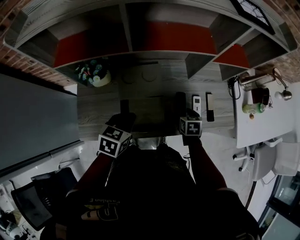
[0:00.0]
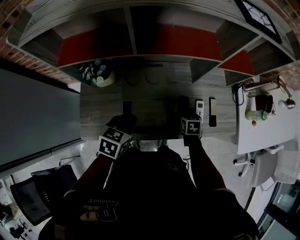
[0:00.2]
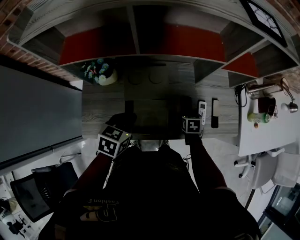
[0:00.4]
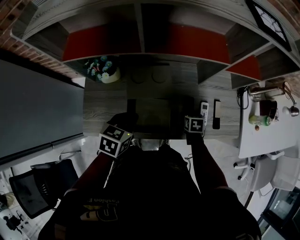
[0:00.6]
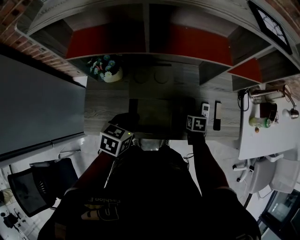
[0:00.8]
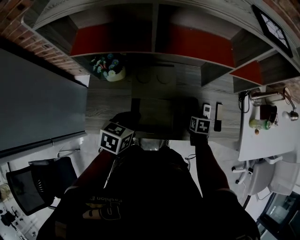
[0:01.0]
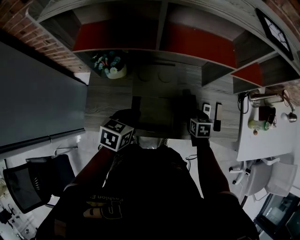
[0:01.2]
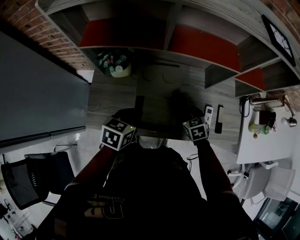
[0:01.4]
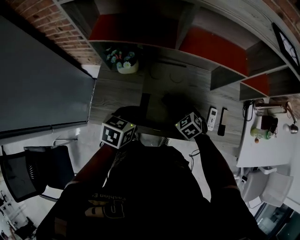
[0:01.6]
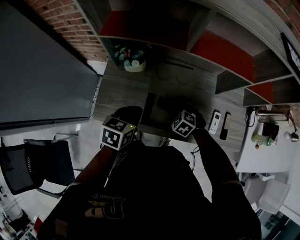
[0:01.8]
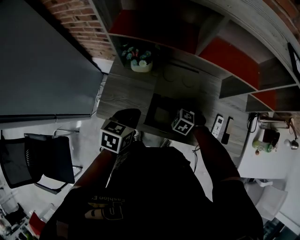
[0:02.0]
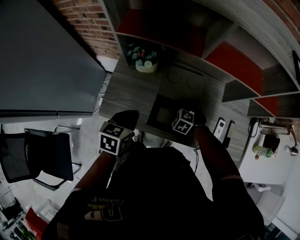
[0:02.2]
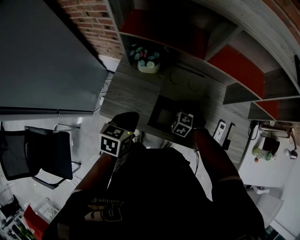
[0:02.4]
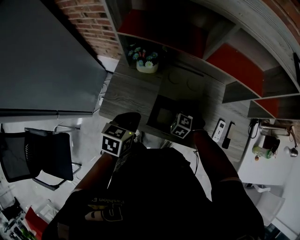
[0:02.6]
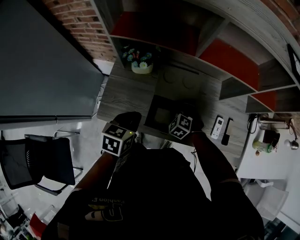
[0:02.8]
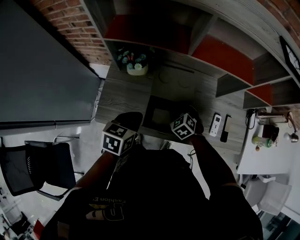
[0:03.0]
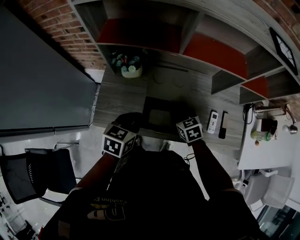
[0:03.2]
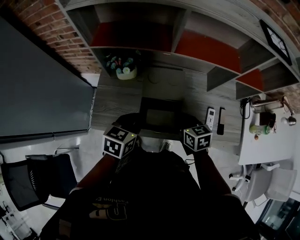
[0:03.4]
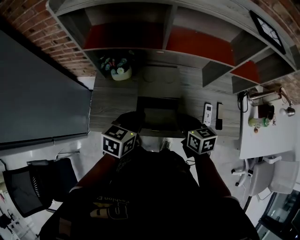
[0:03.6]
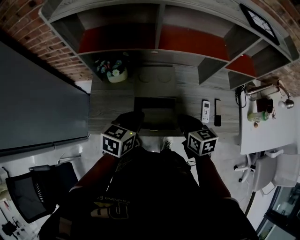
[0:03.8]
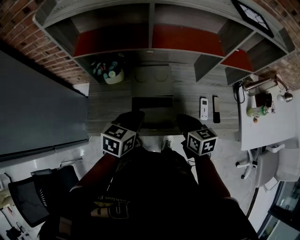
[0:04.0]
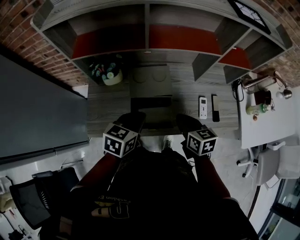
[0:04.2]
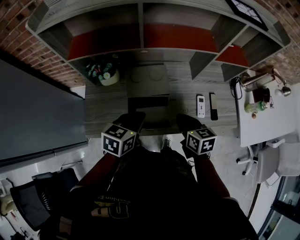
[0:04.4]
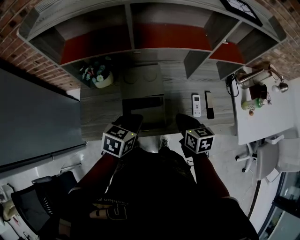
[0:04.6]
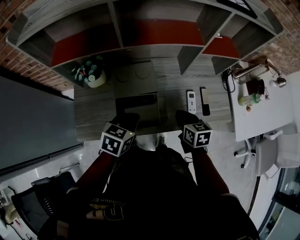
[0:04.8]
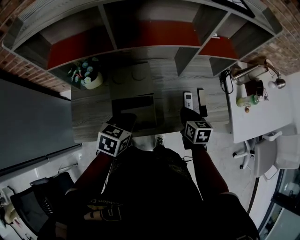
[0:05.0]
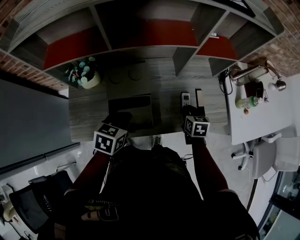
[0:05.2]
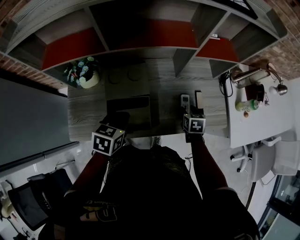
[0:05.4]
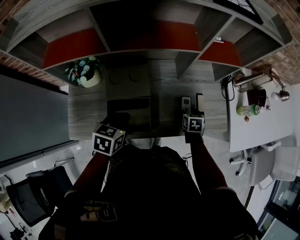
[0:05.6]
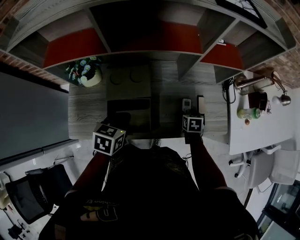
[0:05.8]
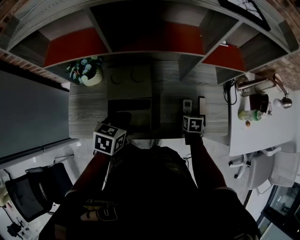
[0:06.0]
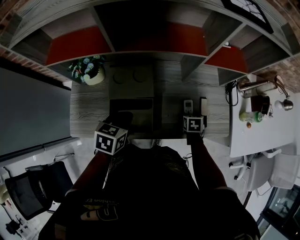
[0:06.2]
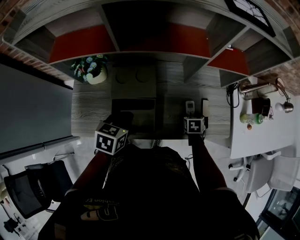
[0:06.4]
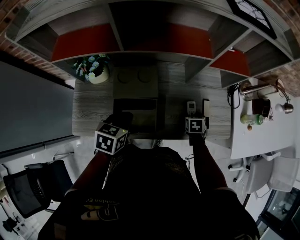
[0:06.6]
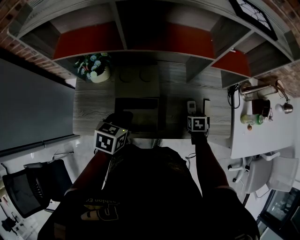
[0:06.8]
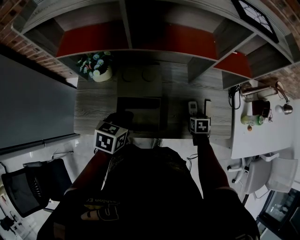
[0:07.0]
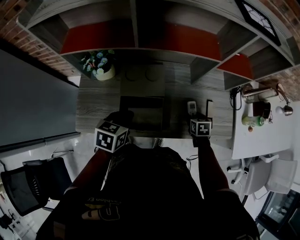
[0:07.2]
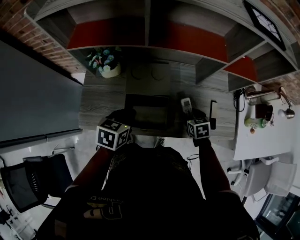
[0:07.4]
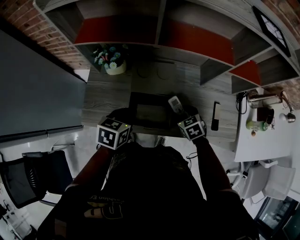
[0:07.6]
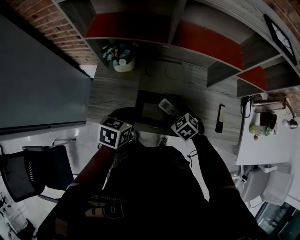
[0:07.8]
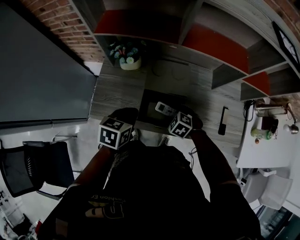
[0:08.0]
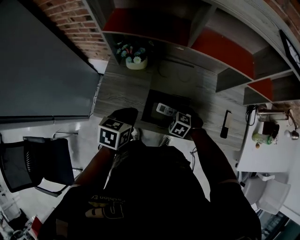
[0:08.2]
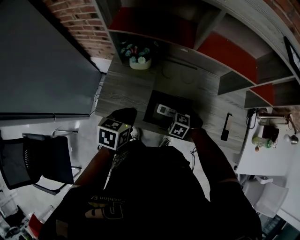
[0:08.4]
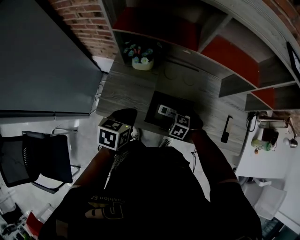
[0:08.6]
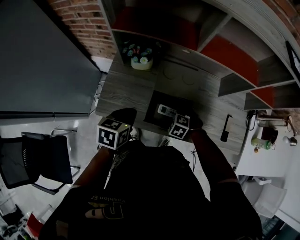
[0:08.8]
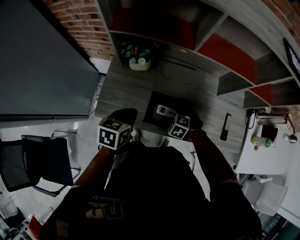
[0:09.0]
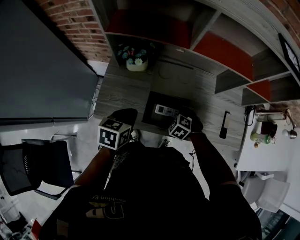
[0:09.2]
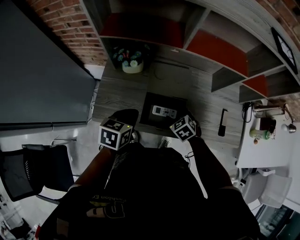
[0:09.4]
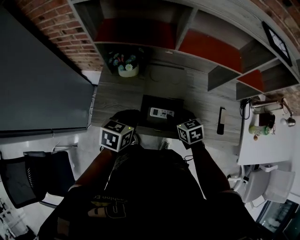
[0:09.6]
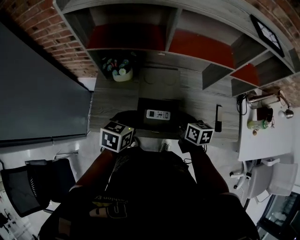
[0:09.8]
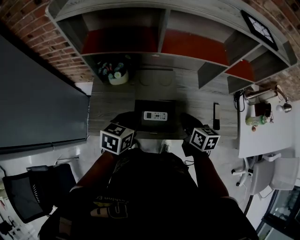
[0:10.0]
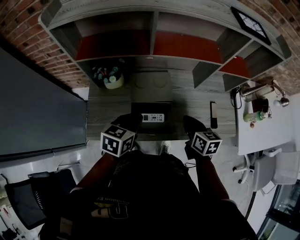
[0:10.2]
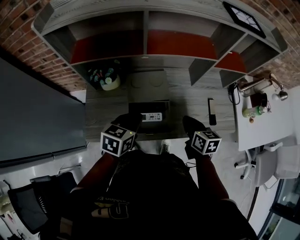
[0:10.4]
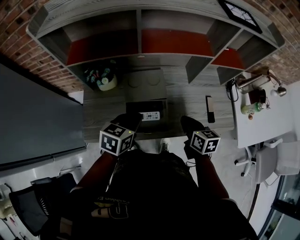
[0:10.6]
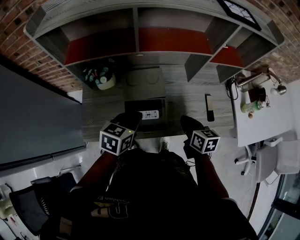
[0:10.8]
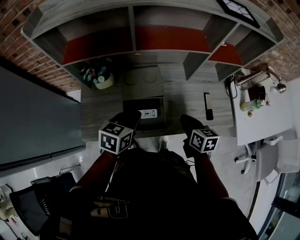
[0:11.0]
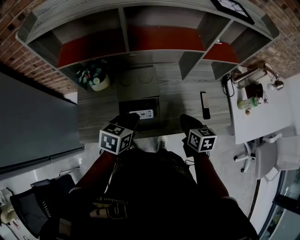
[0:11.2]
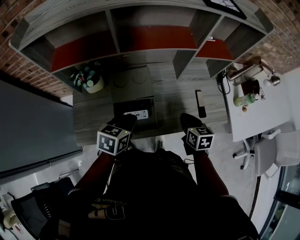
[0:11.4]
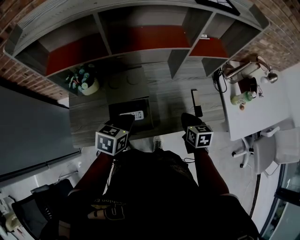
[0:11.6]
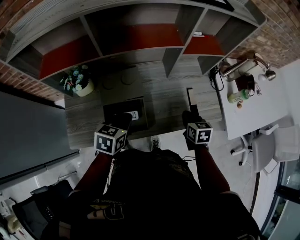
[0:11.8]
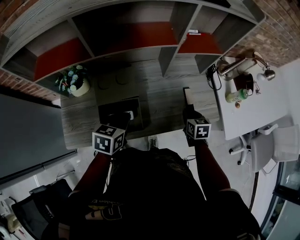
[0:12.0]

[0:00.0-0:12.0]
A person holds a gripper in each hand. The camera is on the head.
0:00.0 to 0:01.6: The right gripper moves to the left, approximately 15 cm, and rolls counterclockwise, seen from behind, by about 50 degrees. The left gripper shifts some 5 cm to the left.
0:03.0 to 0:04.4: The left gripper travels to the right by some 10 cm. Meanwhile the right gripper moves upward, to the right and backward, approximately 20 cm, twists some 60 degrees clockwise, seen from behind, and closes up.
0:04.4 to 0:06.0: The right gripper heads downward, to the right and forward, covering about 25 cm, turns by some 30 degrees, and opens its fingers; the left gripper travels downward by approximately 5 cm.
0:06.0 to 0:07.6: The left gripper heads to the left, covering some 10 cm. Meanwhile the right gripper shifts some 20 cm to the left and upward, and turns by approximately 40 degrees.
0:07.6 to 0:09.0: The left gripper moves to the left, about 10 cm; the right gripper heads to the left and downward, covering roughly 15 cm, and rolls counterclockwise, seen from behind, by some 50 degrees.
0:09.0 to 0:10.4: The right gripper heads upward and to the right, covering about 20 cm, rotates around the line of its fingers by roughly 80 degrees, clockwise from behind, and closes its fingers, while the left gripper goes some 15 cm to the right and upward, and rotates roughly 20 degrees.
0:10.4 to 0:12.0: The left gripper travels to the right by some 10 cm. Meanwhile the right gripper goes roughly 20 cm to the right and downward.

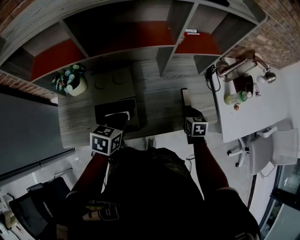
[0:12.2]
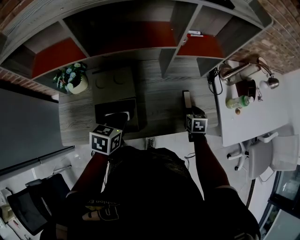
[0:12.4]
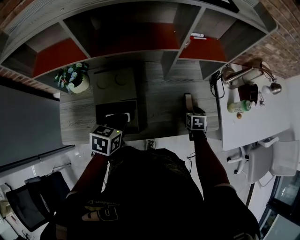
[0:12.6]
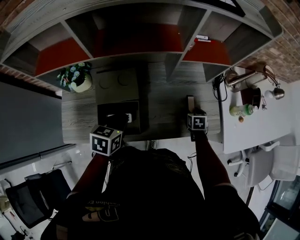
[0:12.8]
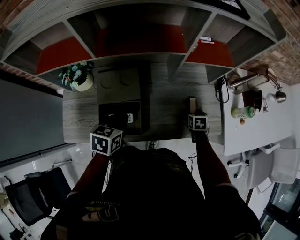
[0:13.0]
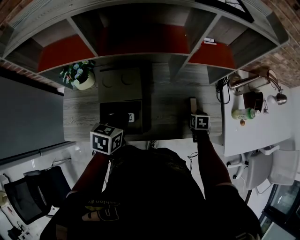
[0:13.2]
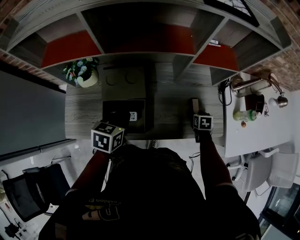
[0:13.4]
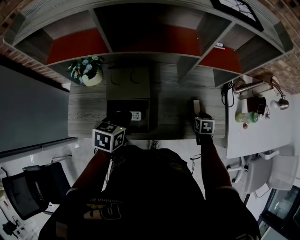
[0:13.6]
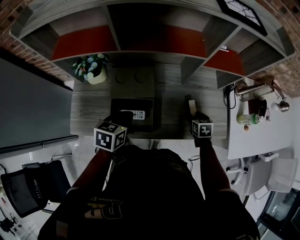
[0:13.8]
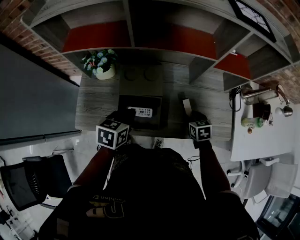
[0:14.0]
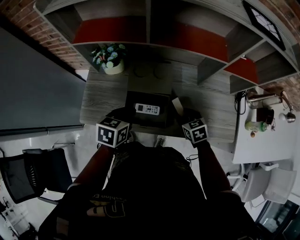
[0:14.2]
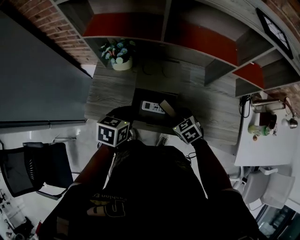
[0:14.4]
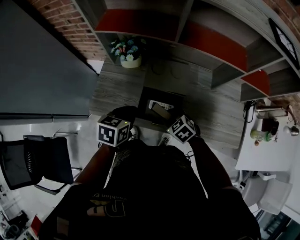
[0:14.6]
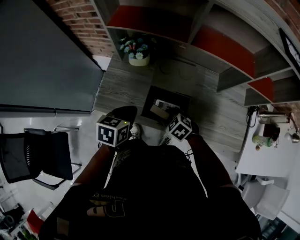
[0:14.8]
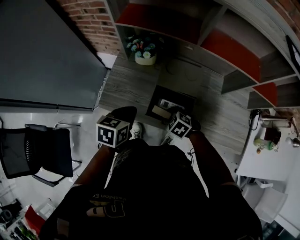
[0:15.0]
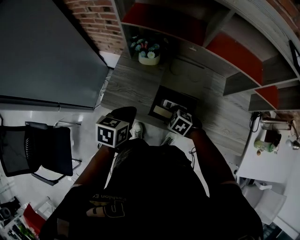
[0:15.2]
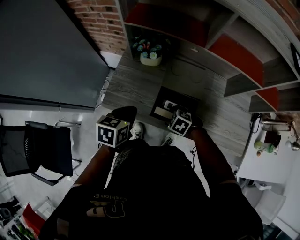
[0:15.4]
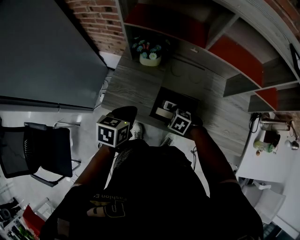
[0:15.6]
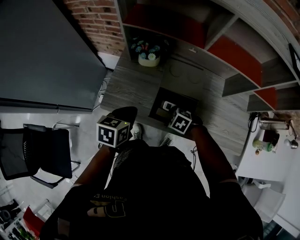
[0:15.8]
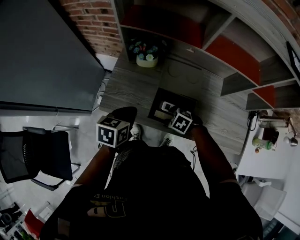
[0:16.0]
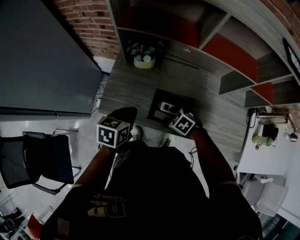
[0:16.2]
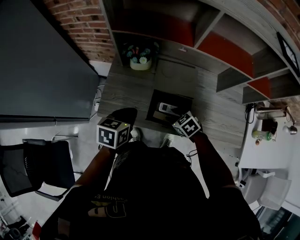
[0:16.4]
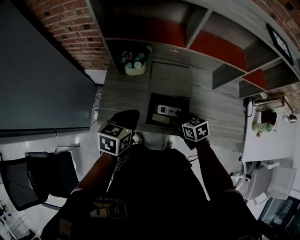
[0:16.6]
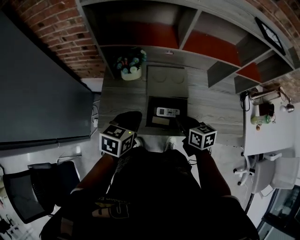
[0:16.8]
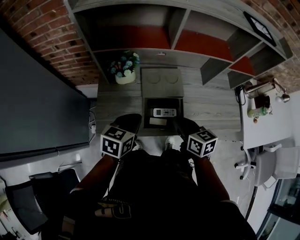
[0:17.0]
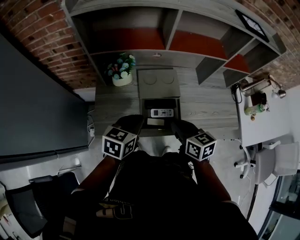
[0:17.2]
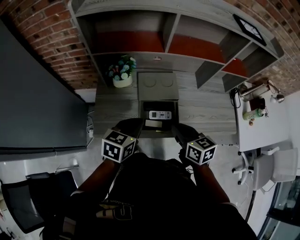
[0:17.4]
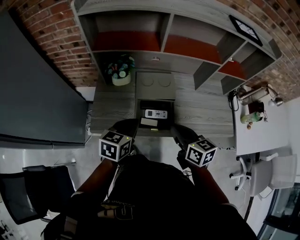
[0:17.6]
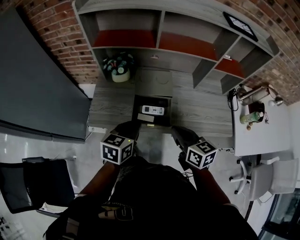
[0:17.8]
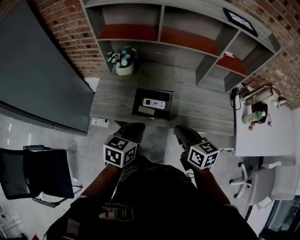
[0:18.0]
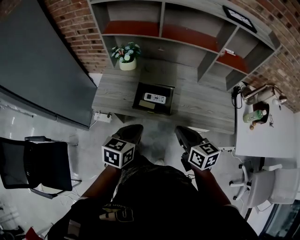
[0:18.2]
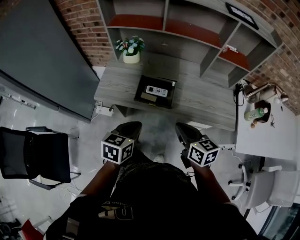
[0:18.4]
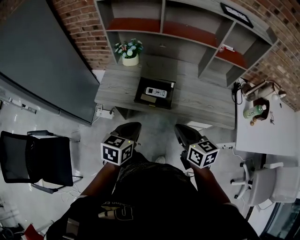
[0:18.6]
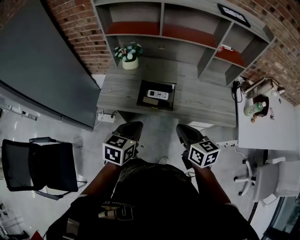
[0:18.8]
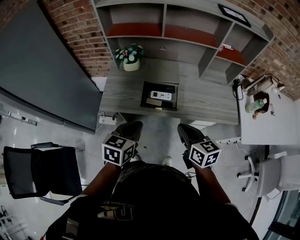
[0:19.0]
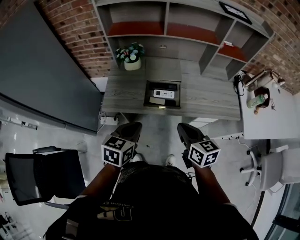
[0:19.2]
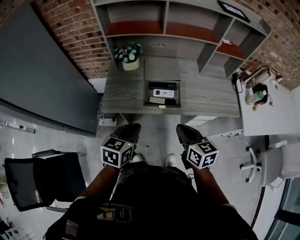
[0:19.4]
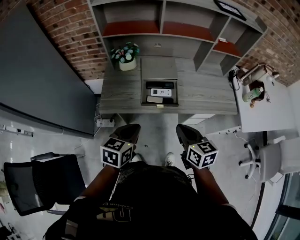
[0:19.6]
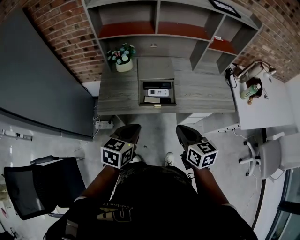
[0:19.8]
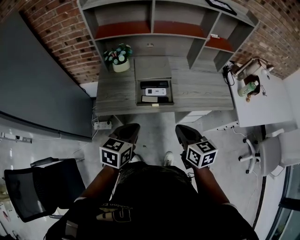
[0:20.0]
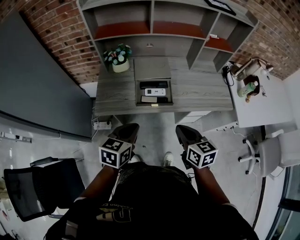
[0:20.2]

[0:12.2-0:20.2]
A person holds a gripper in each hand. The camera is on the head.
0:12.2 to 0:13.8: The right gripper opens its fingers. The left gripper goes approximately 5 cm to the left.
0:13.8 to 0:15.4: The right gripper changes place by about 35 cm, and twists approximately 70 degrees counterclockwise, seen from behind. Meanwhile the left gripper ends up roughly 20 cm from where it was.
0:15.4 to 0:17.0: The left gripper moves roughly 5 cm, and swivels some 30 degrees. The right gripper is displaced upward by some 20 cm, angles its fingers upward, by approximately 50 degrees, and closes its fingers.
0:17.0 to 0:18.6: The grippers both shift backward and to the right by some 20 cm.
0:18.6 to 0:20.2: The right gripper changes place by some 5 cm, while the left gripper heads to the left, covering about 5 cm.

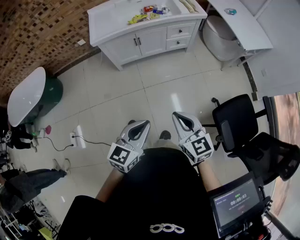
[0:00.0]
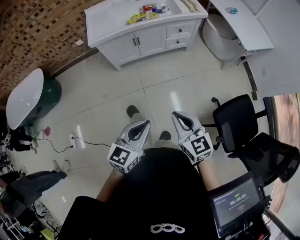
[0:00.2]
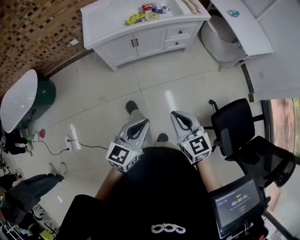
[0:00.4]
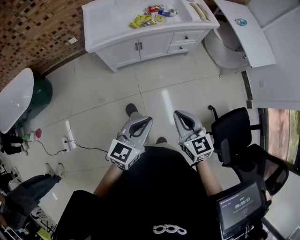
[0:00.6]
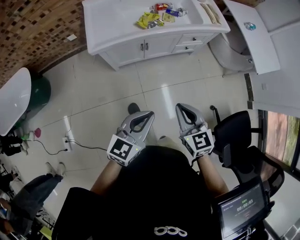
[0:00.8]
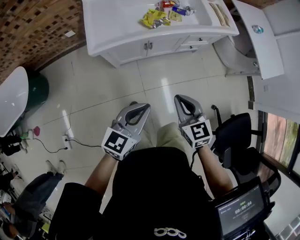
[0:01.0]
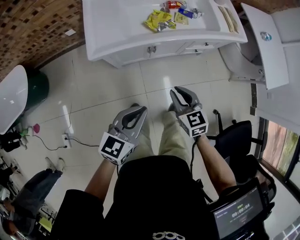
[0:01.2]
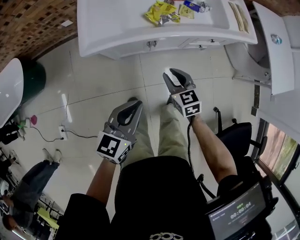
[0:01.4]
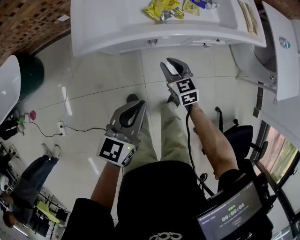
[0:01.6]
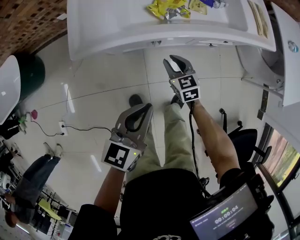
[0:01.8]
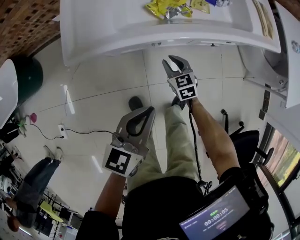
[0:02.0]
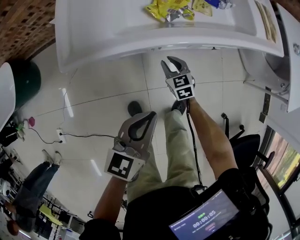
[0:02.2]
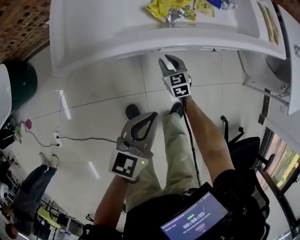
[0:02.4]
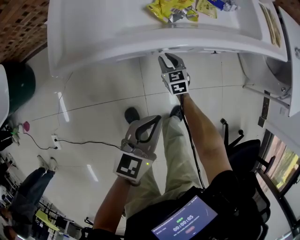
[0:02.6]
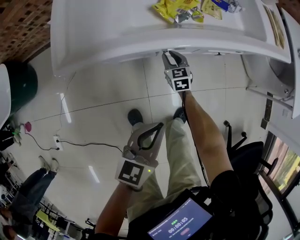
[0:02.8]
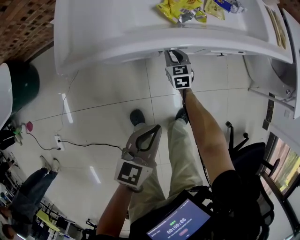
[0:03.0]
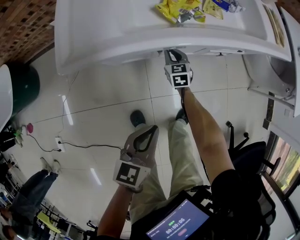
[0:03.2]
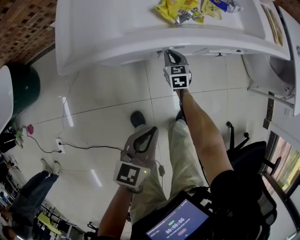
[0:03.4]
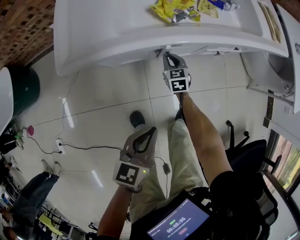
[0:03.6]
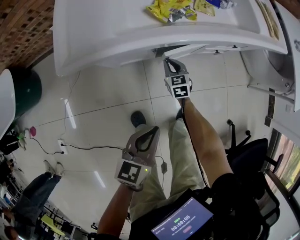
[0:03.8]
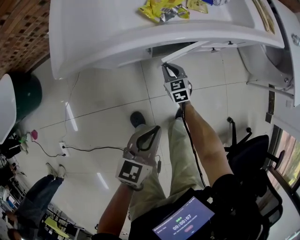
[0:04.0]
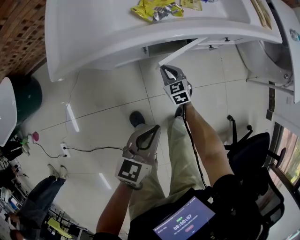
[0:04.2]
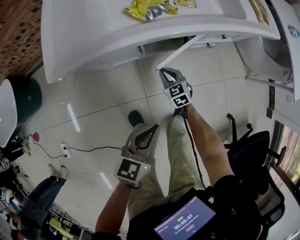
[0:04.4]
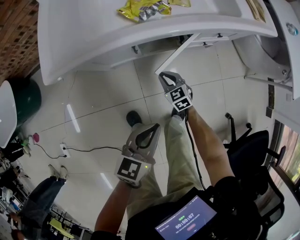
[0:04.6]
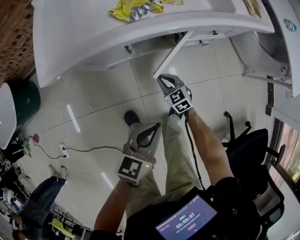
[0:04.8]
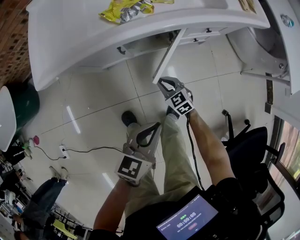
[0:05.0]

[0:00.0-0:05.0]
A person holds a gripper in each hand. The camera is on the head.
0:00.0 to 0:01.6: The two grippers travel together, forward, about 60 cm. The right gripper is displaced downward by approximately 30 cm, and opens.
0:01.6 to 0:03.4: The right gripper travels downward and forward by approximately 25 cm. The left gripper shifts some 15 cm downward.
0:03.4 to 0:05.0: The right gripper moves backward and to the right, some 20 cm, and swivels roughly 20 degrees, while the left gripper shifts about 15 cm to the right.
